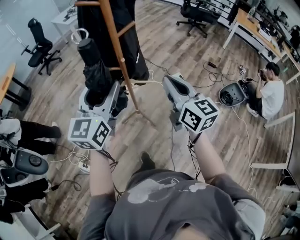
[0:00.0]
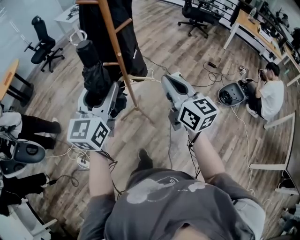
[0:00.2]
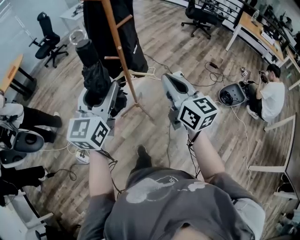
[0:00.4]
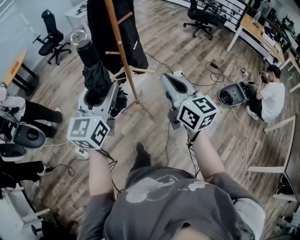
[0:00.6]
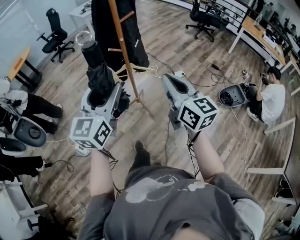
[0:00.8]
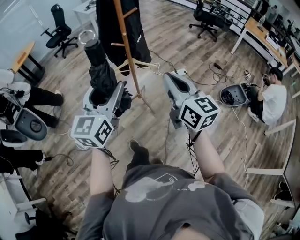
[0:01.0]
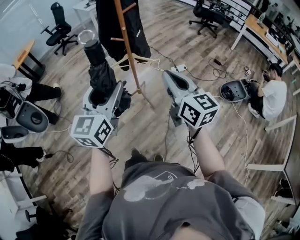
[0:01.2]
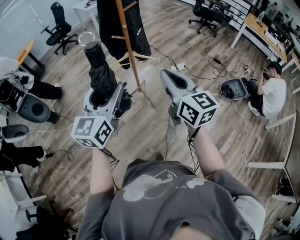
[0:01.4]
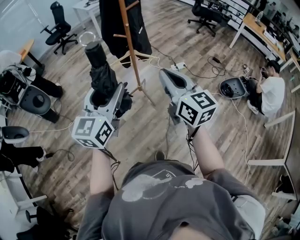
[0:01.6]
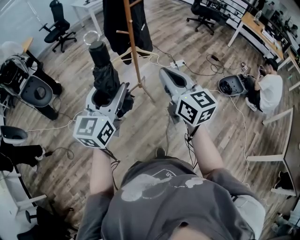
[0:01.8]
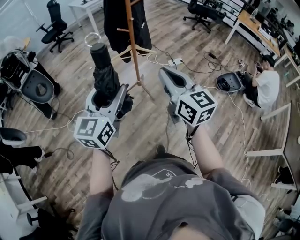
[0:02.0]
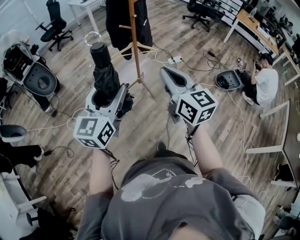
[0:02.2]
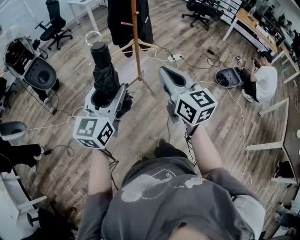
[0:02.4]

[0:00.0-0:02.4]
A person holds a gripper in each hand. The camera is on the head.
0:00.0 to 0:01.2: The two grippers go some 25 cm backward.
0:01.2 to 0:02.4: The left gripper moves backward and to the left, some 20 cm. Meanwhile the right gripper goes about 20 cm to the left and backward.

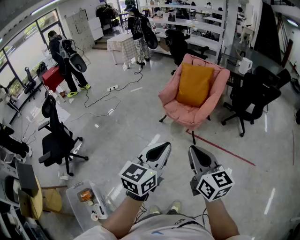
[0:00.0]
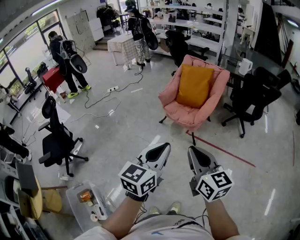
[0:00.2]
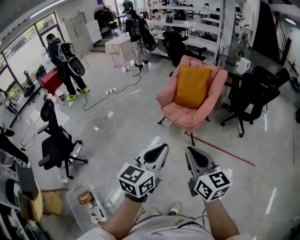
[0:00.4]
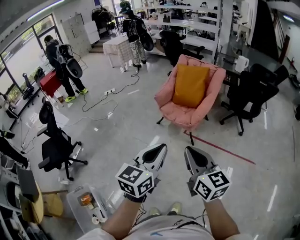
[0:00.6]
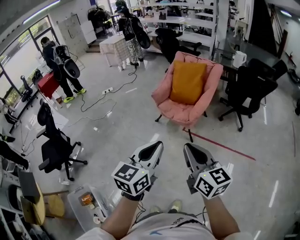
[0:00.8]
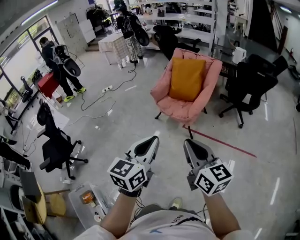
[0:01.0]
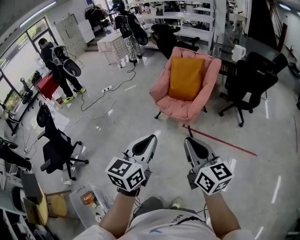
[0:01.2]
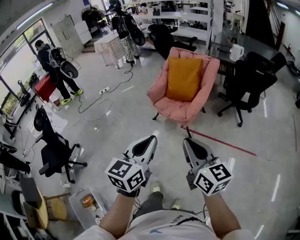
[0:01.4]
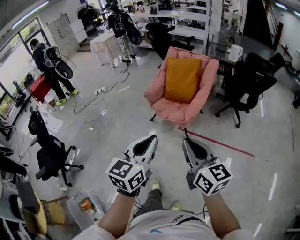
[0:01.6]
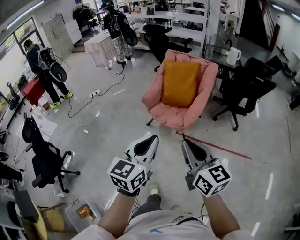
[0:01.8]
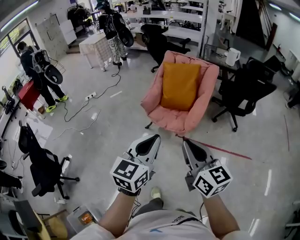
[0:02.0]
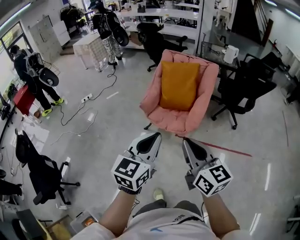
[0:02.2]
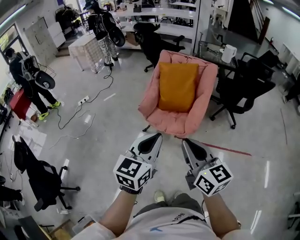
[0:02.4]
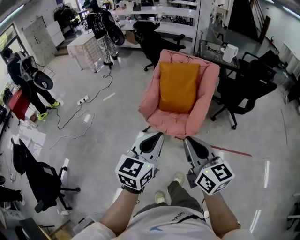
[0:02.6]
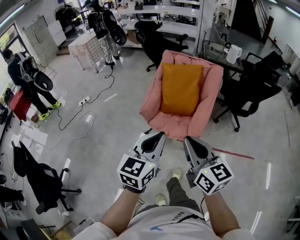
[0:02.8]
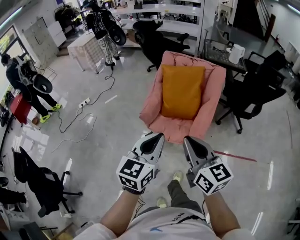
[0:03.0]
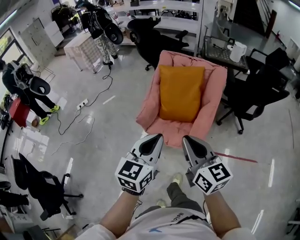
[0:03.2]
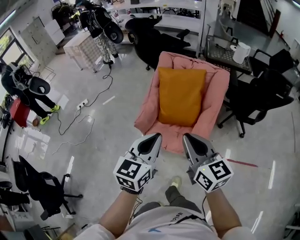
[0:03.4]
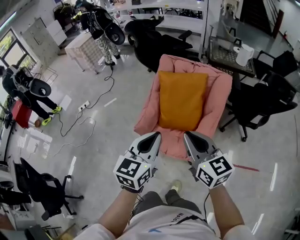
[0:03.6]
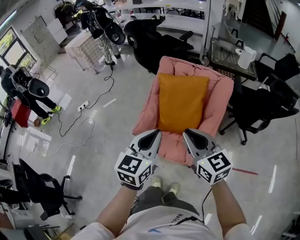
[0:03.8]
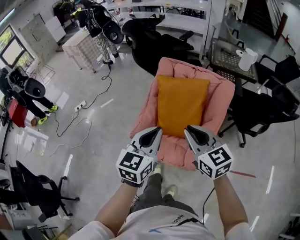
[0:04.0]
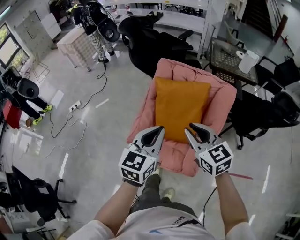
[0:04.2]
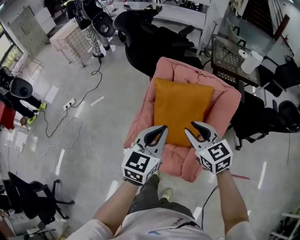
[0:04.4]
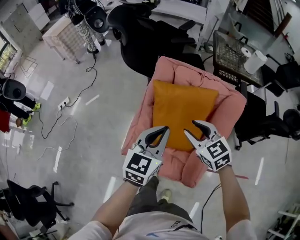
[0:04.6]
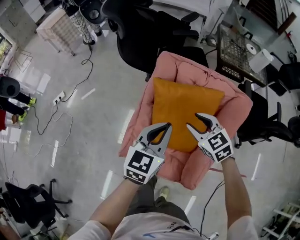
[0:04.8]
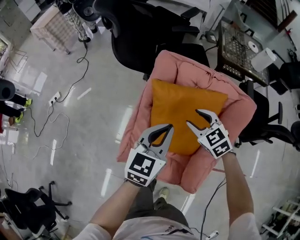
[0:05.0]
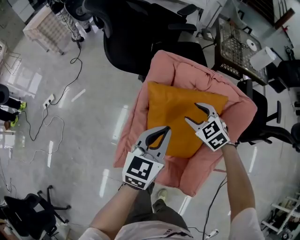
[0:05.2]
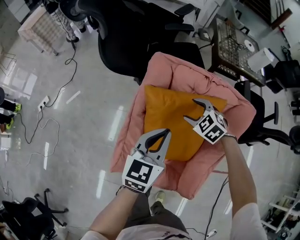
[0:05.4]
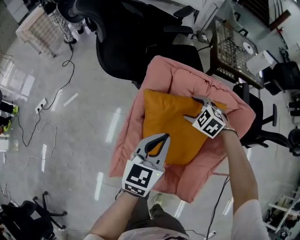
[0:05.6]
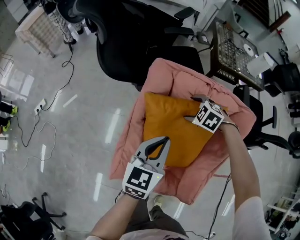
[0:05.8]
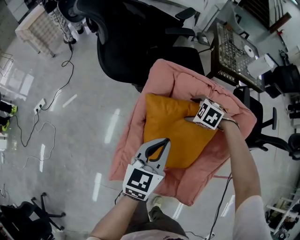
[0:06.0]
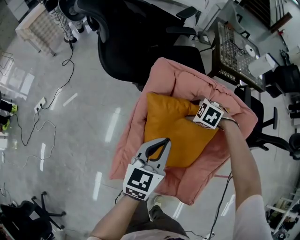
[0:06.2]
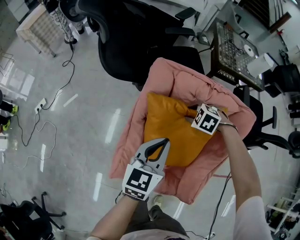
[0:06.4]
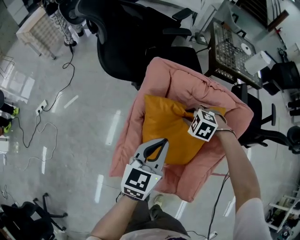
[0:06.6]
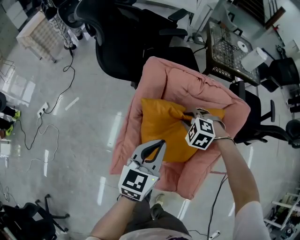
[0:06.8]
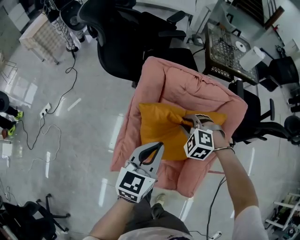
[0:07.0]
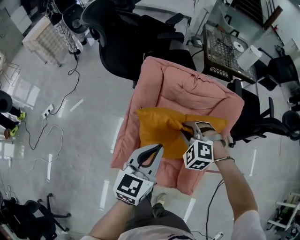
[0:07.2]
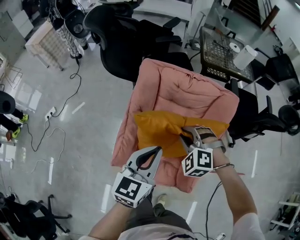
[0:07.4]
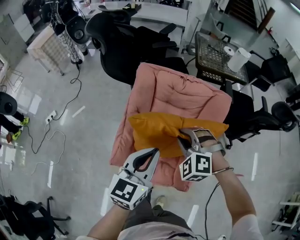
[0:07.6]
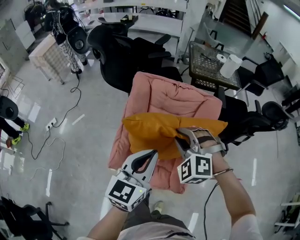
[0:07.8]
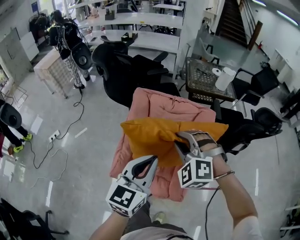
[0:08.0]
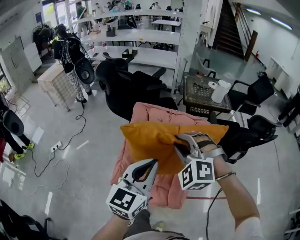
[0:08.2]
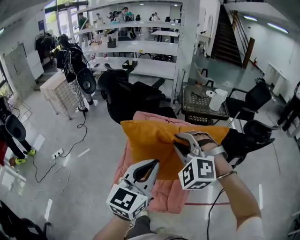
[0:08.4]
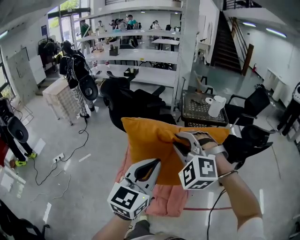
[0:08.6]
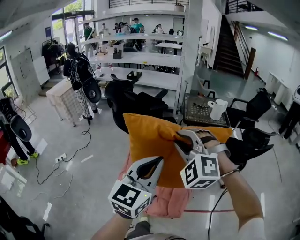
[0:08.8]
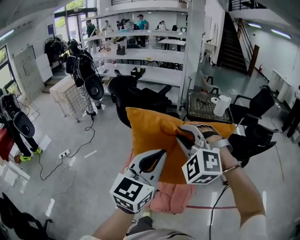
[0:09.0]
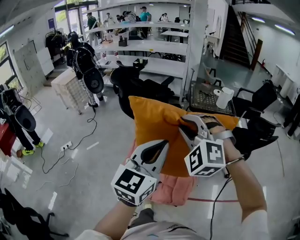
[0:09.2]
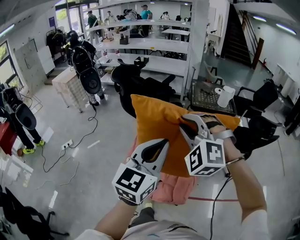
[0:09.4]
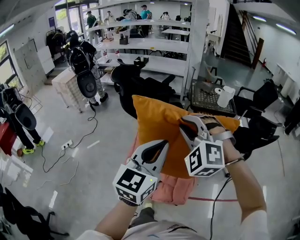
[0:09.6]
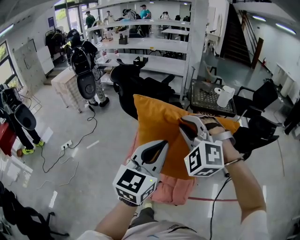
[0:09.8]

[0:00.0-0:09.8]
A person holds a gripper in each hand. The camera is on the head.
0:00.0 to 0:01.4: The left gripper heads forward, covering some 5 cm. The right gripper heads to the right and forward, covering about 10 cm.
0:01.4 to 0:02.8: The left gripper goes about 35 cm forward. Meanwhile the right gripper moves forward and to the left, approximately 35 cm.
0:02.8 to 0:04.2: The two grippers travel together, forward, roughly 40 cm. The right gripper swivels roughly 20 degrees.
0:04.2 to 0:05.6: Both grippers move forward and downward, roughly 40 cm. The right gripper tips its fingers downward by some 40 degrees, and opens up.
0:05.6 to 0:07.0: The left gripper shifts by roughly 10 cm. The right gripper moves approximately 10 cm, and closes up.
0:07.0 to 0:08.4: The two grippers go roughly 40 cm upward and backward. The left gripper turns by some 20 degrees. The right gripper angles its fingers upward, by some 30 degrees.
0:08.4 to 0:09.8: The left gripper shifts by some 5 cm. Meanwhile the right gripper heads upward, covering about 5 cm.

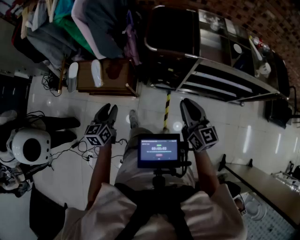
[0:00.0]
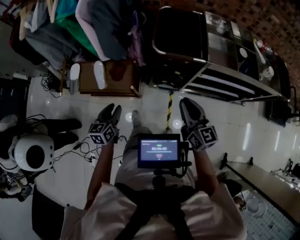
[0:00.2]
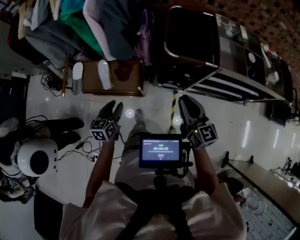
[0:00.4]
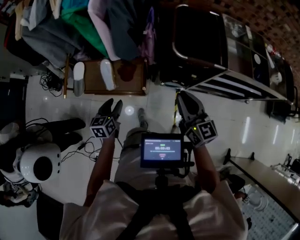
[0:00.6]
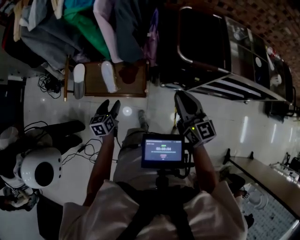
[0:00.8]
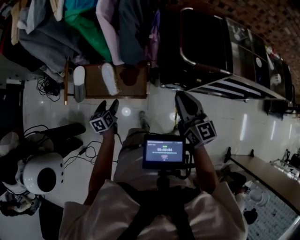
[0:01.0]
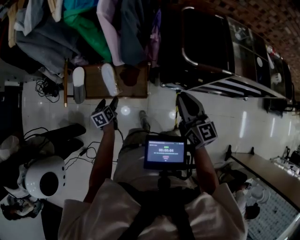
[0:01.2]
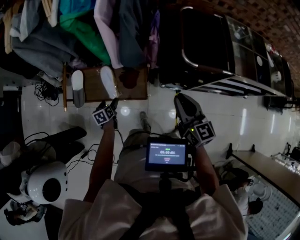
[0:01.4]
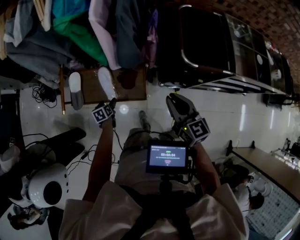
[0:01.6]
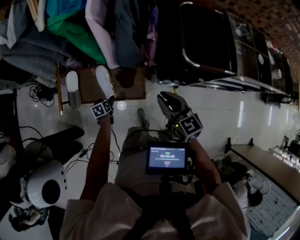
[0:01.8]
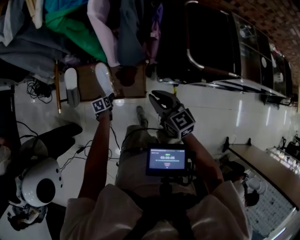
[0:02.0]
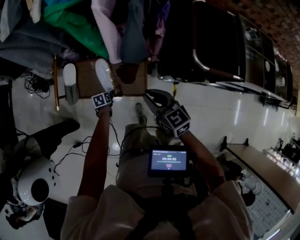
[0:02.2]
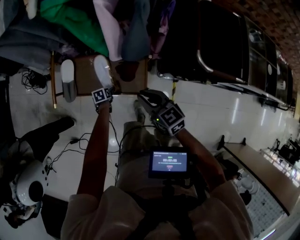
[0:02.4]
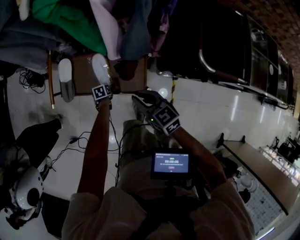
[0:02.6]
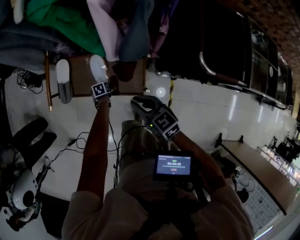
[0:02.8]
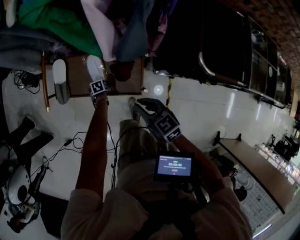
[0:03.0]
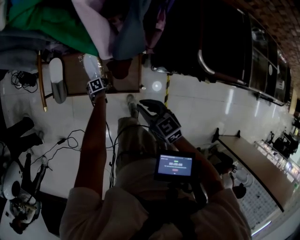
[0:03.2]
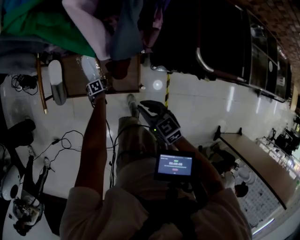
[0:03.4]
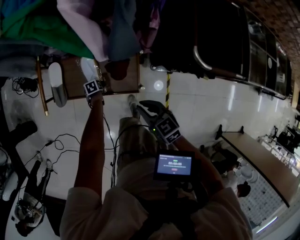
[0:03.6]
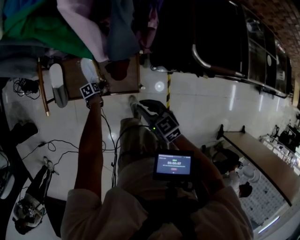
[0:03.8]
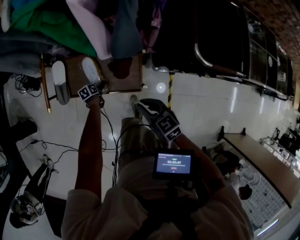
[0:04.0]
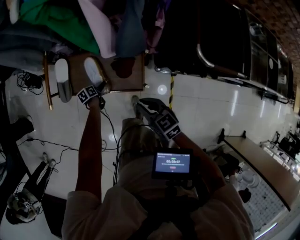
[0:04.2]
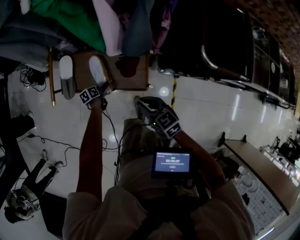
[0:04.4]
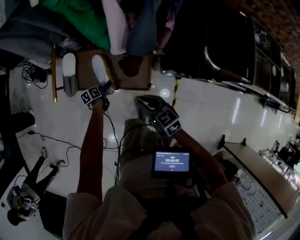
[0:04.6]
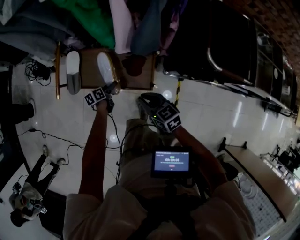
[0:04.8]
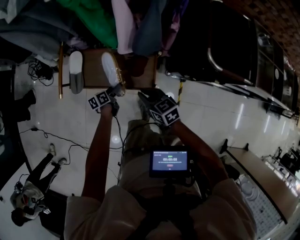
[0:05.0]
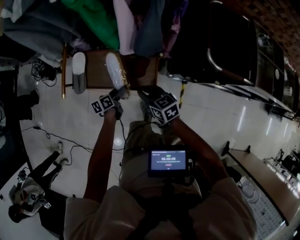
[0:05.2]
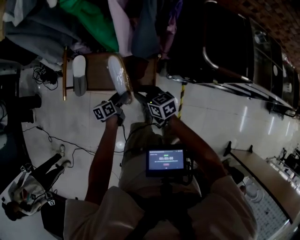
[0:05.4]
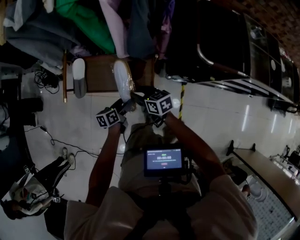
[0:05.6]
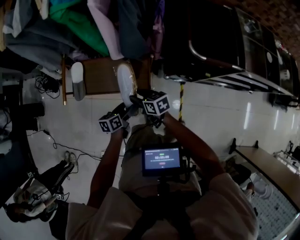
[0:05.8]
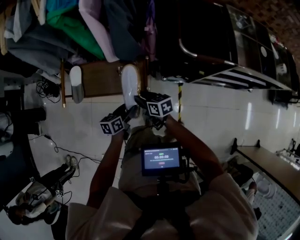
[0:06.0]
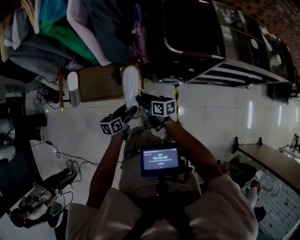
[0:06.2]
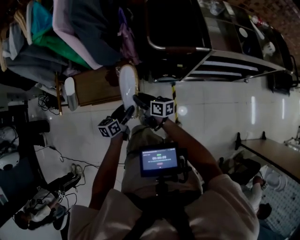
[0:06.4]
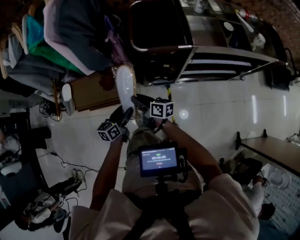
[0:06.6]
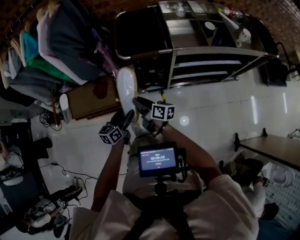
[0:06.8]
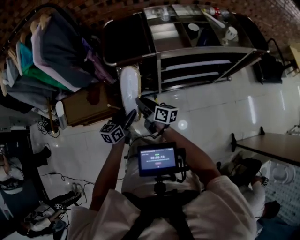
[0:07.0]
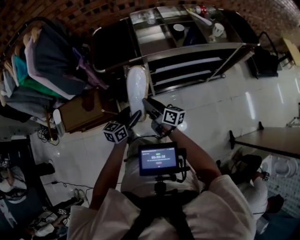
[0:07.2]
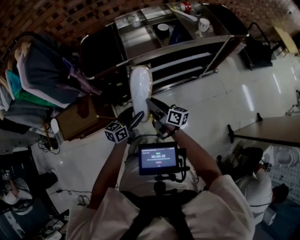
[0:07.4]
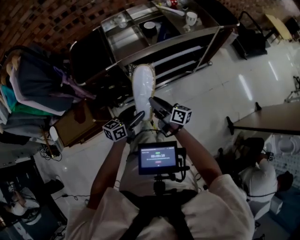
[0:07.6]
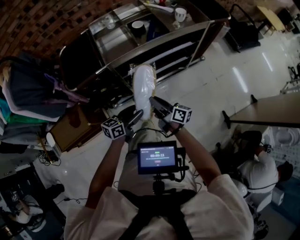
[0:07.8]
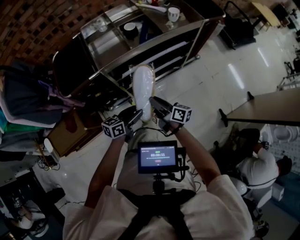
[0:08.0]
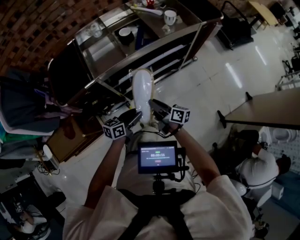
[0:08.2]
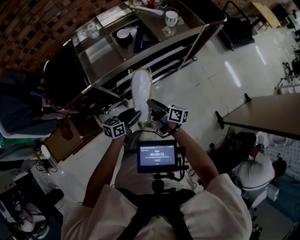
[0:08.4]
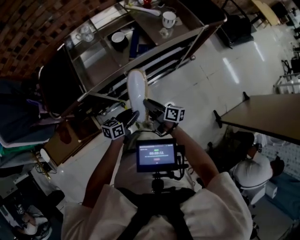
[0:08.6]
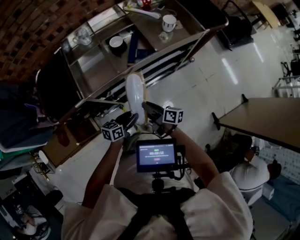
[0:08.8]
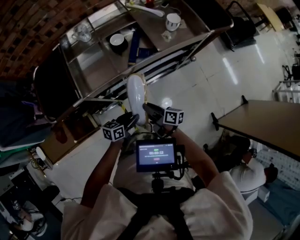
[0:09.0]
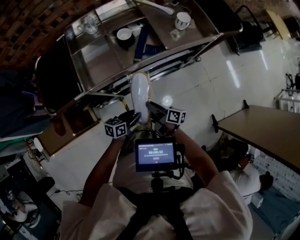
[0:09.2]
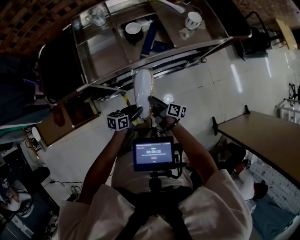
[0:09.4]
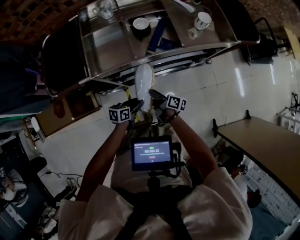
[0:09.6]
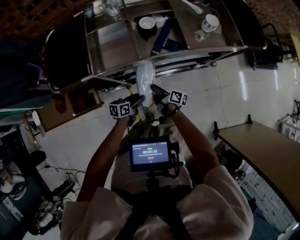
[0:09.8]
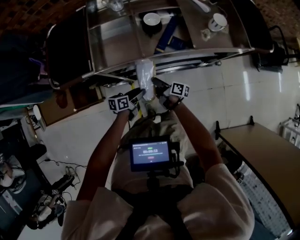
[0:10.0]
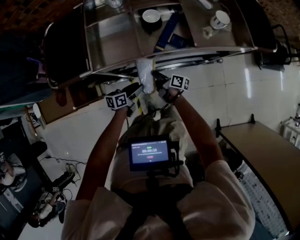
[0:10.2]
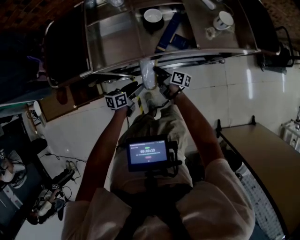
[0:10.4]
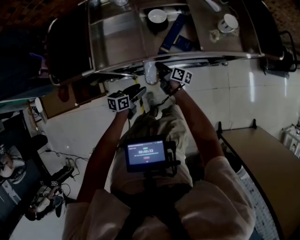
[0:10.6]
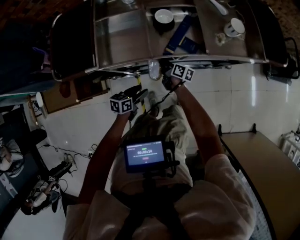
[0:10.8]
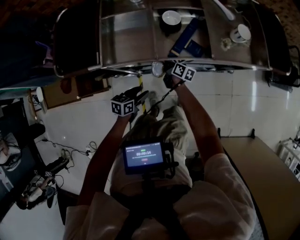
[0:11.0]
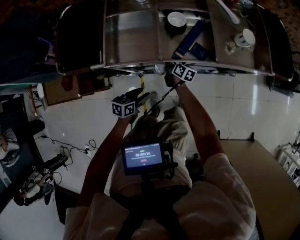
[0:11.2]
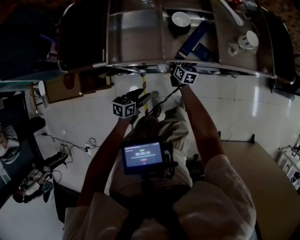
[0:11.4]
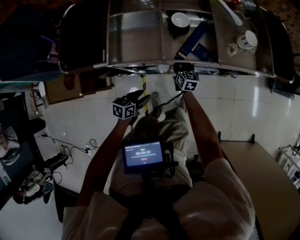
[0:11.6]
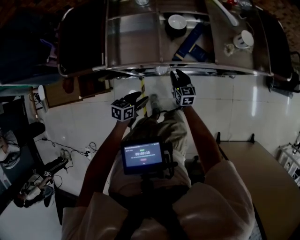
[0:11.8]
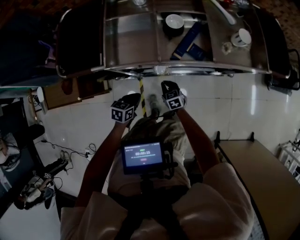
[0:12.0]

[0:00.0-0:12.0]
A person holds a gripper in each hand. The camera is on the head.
0:00.0 to 0:01.6: The left gripper is displaced downward, to the left and forward by some 40 cm, rotates about 30 degrees, and opens; the right gripper travels to the left and forward by about 35 cm.
0:01.6 to 0:03.0: The grippers both shift downward by about 20 cm. The left gripper swivels approximately 30 degrees, while the right gripper turns by some 30 degrees.
0:03.0 to 0:04.4: The left gripper heads upward, covering approximately 5 cm, and angles its fingers upward, by some 30 degrees.
0:04.4 to 0:06.0: The left gripper shifts about 35 cm upward, to the right and backward, and rotates roughly 30 degrees; the right gripper swivels approximately 30 degrees, and opens its fingers.
0:06.0 to 0:07.6: The two grippers travel together, some 60 cm. The left gripper changes its angle by some 50 degrees, while the right gripper points its fingers approximately 30 degrees further upward, and closes its fingers.
0:07.6 to 0:09.0: The two grippers go about 20 cm forward, downward and to the right. The left gripper swivels about 20 degrees.
0:09.0 to 0:10.4: The left gripper heads forward, downward and to the left, covering roughly 15 cm, and changes its angle by some 20 degrees. Meanwhile the right gripper travels forward and downward by roughly 20 cm.
0:10.4 to 0:12.0: The left gripper shifts by some 5 cm, changes its angle by approximately 20 degrees, and closes. Meanwhile the right gripper is displaced backward and downward by approximately 10 cm, twists roughly 60 degrees counterclockwise, seen from behind, and opens and closes again.
